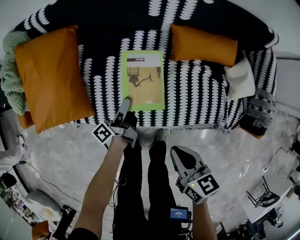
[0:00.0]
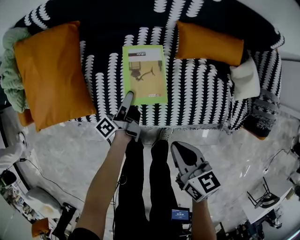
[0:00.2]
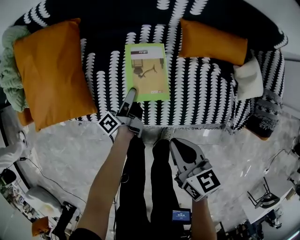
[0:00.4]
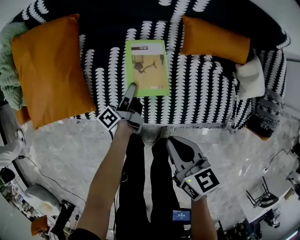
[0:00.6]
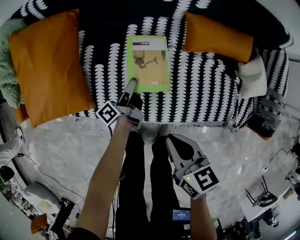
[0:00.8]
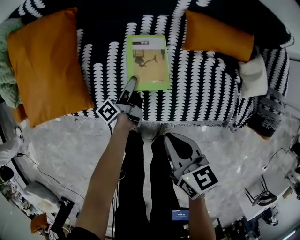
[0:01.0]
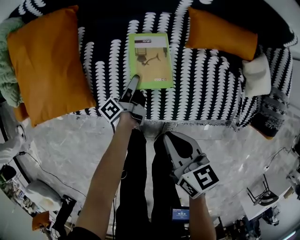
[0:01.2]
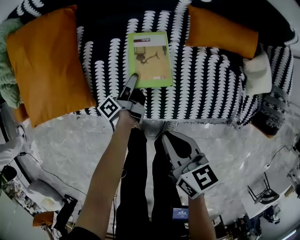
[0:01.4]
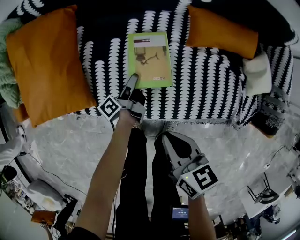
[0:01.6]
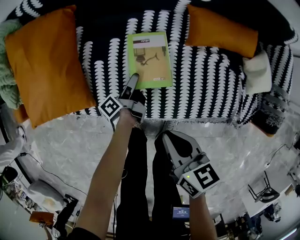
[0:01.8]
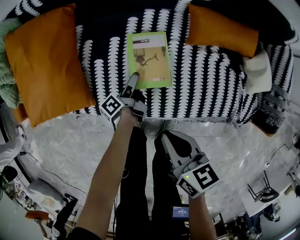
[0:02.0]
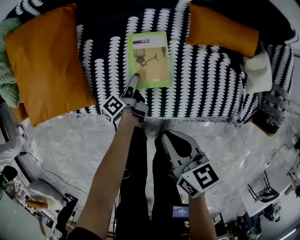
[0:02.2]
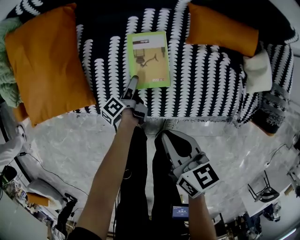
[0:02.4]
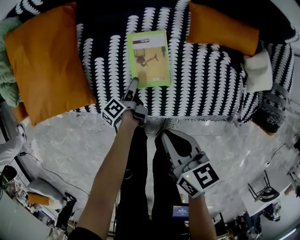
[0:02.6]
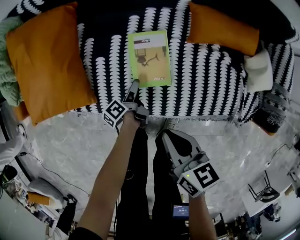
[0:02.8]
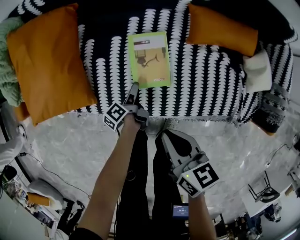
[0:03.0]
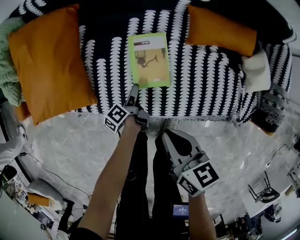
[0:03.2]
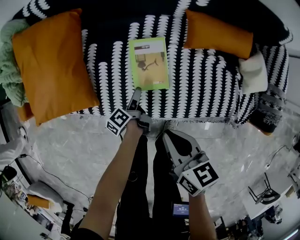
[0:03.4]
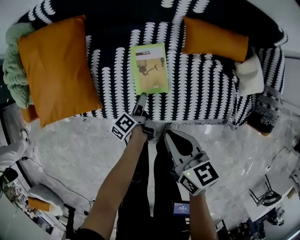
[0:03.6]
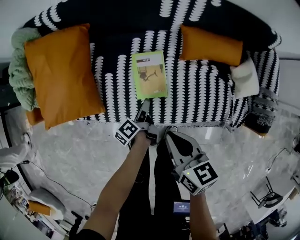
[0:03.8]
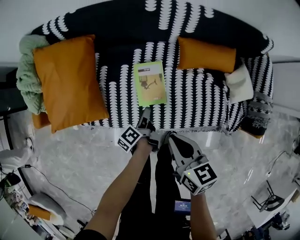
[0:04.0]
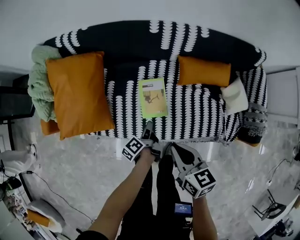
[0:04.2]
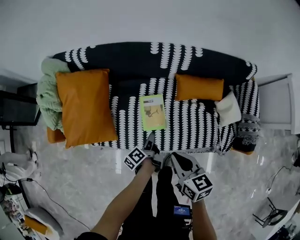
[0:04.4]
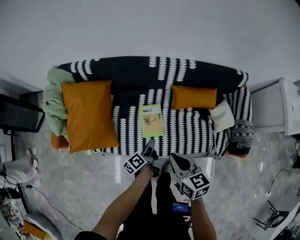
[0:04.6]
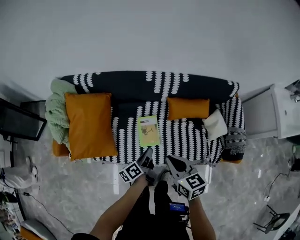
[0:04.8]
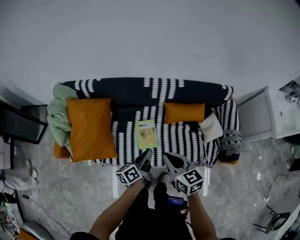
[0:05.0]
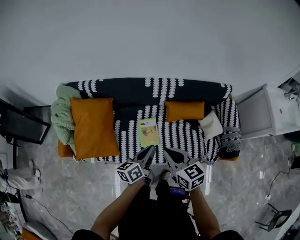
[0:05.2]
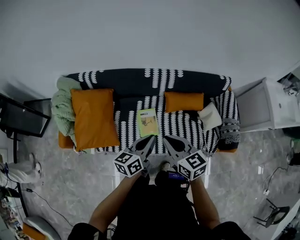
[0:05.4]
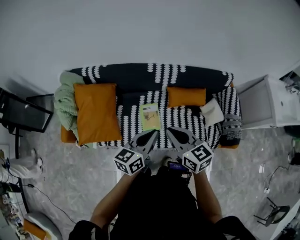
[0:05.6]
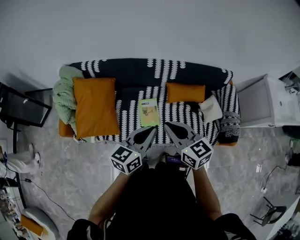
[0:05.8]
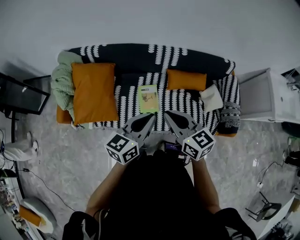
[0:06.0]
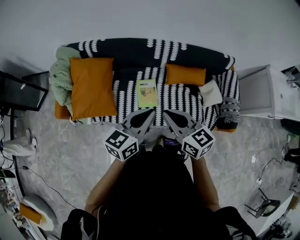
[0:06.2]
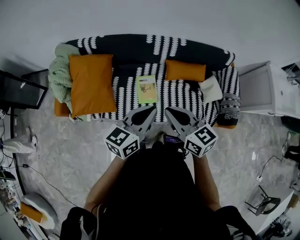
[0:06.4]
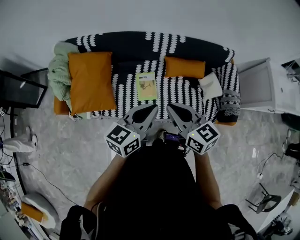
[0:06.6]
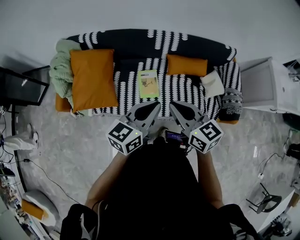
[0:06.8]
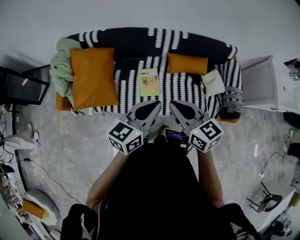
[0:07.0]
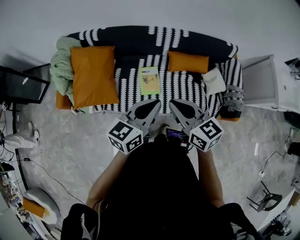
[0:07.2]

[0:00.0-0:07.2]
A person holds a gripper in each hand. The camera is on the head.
0.0 to 1.4 s: The right gripper shifts by about 10 cm.
2.8 to 4.4 s: The right gripper shifts about 15 cm upward.
4.4 to 5.8 s: The right gripper is displaced upward by about 20 cm, and changes its angle by some 20 degrees.
5.8 to 7.2 s: The right gripper ends up about 5 cm from where it was.

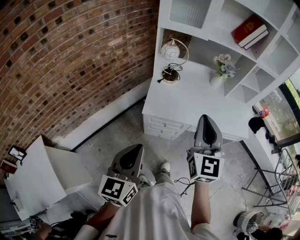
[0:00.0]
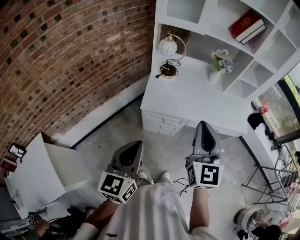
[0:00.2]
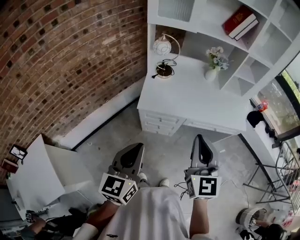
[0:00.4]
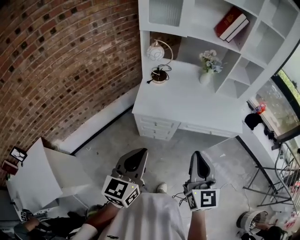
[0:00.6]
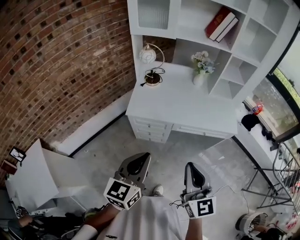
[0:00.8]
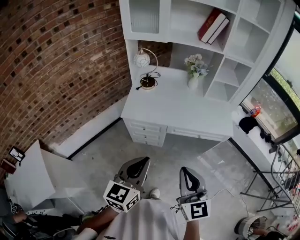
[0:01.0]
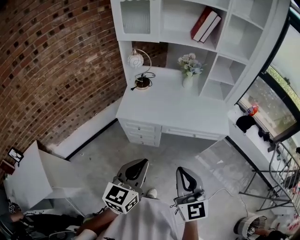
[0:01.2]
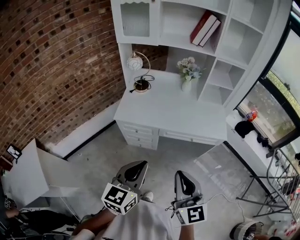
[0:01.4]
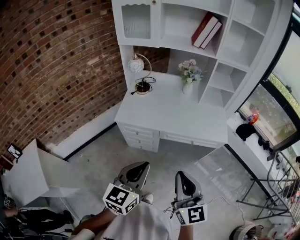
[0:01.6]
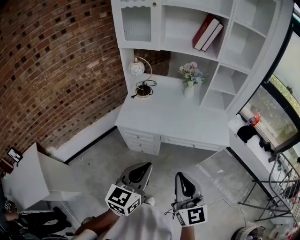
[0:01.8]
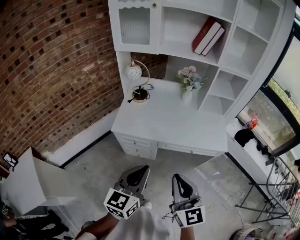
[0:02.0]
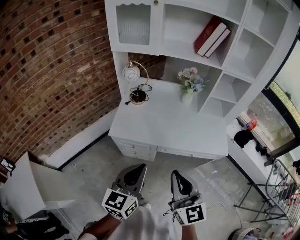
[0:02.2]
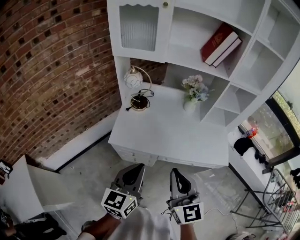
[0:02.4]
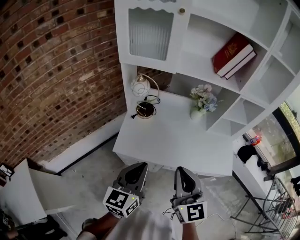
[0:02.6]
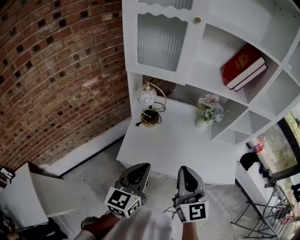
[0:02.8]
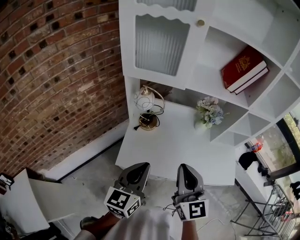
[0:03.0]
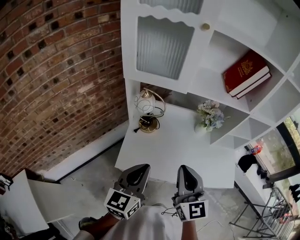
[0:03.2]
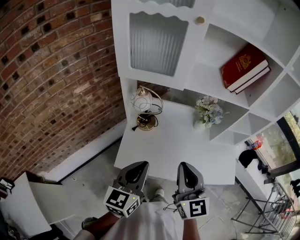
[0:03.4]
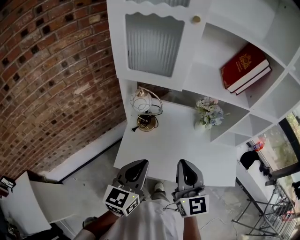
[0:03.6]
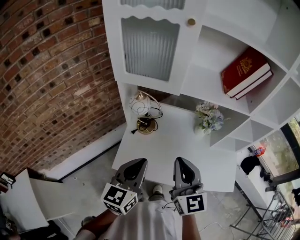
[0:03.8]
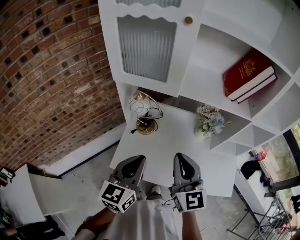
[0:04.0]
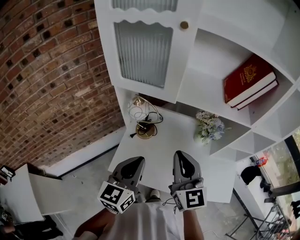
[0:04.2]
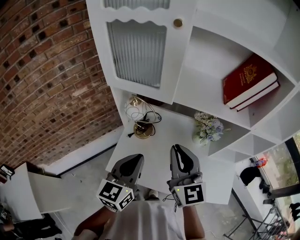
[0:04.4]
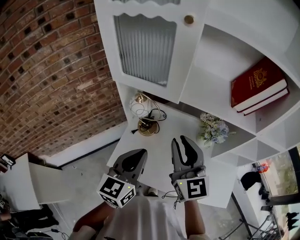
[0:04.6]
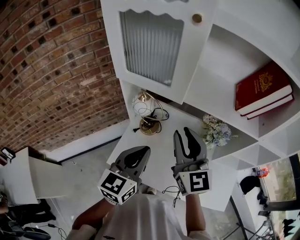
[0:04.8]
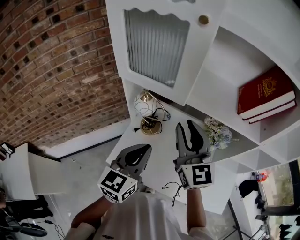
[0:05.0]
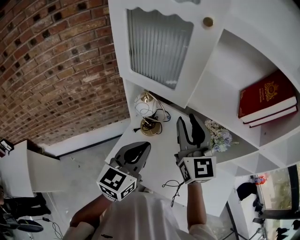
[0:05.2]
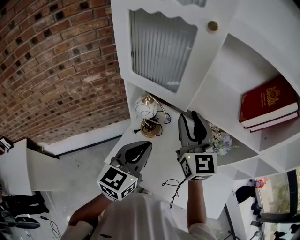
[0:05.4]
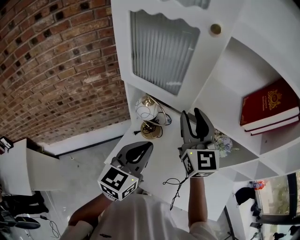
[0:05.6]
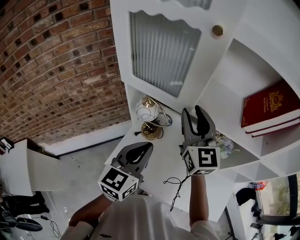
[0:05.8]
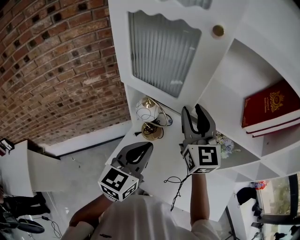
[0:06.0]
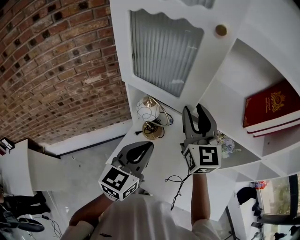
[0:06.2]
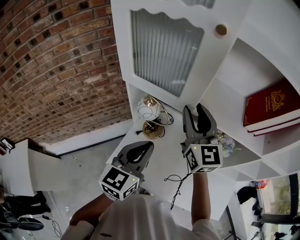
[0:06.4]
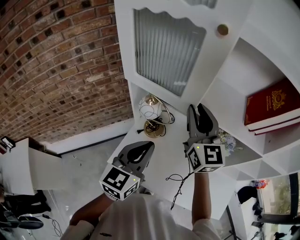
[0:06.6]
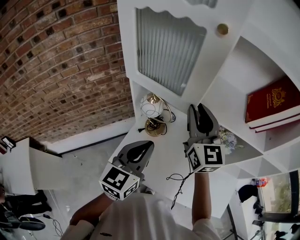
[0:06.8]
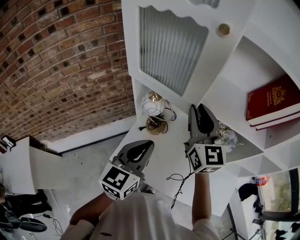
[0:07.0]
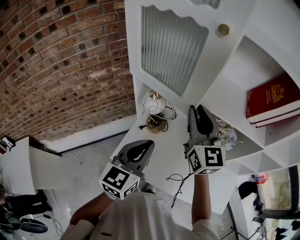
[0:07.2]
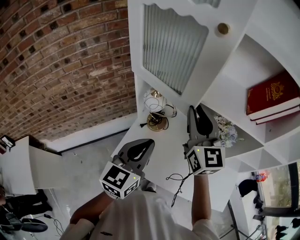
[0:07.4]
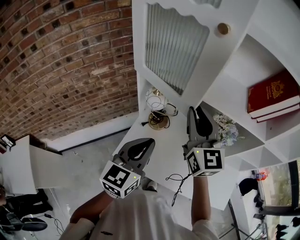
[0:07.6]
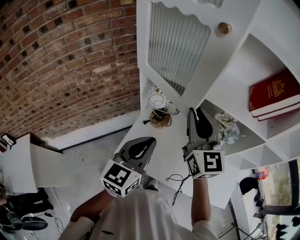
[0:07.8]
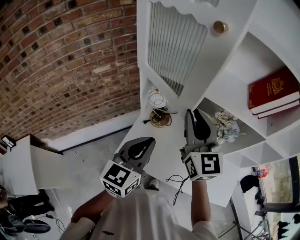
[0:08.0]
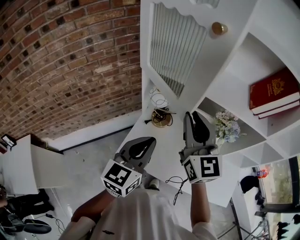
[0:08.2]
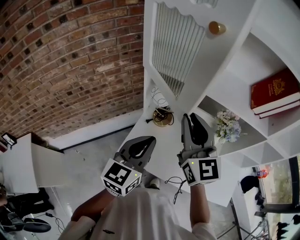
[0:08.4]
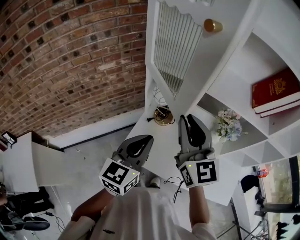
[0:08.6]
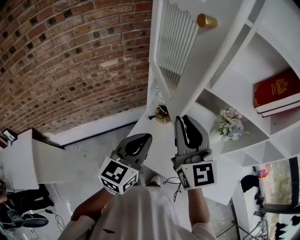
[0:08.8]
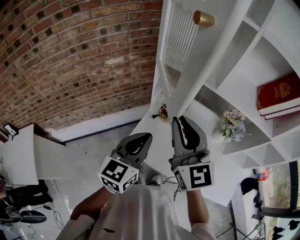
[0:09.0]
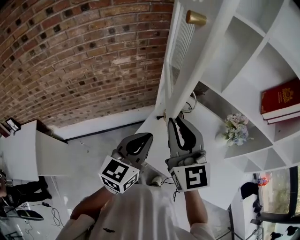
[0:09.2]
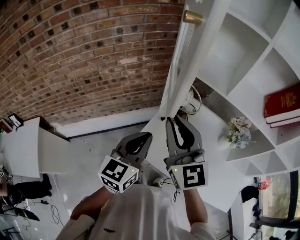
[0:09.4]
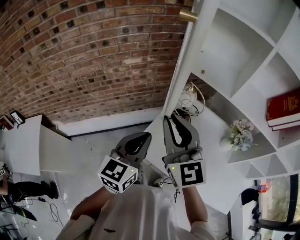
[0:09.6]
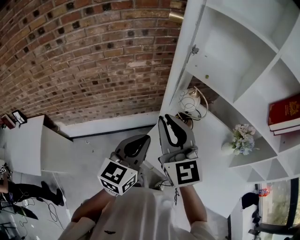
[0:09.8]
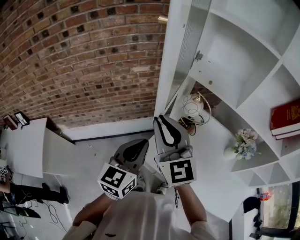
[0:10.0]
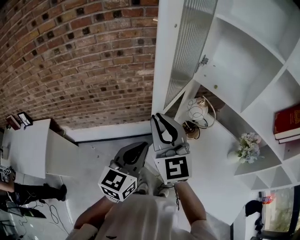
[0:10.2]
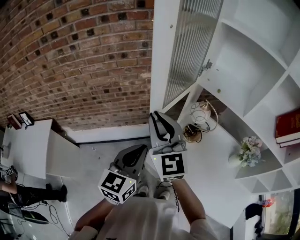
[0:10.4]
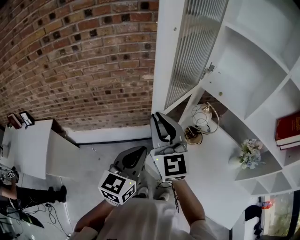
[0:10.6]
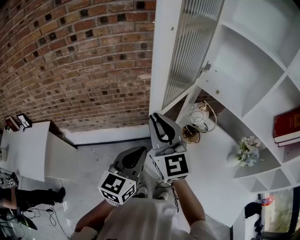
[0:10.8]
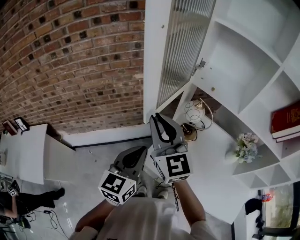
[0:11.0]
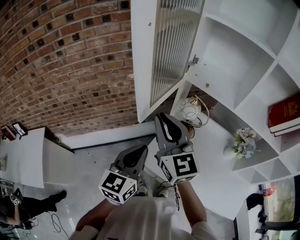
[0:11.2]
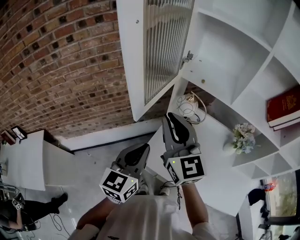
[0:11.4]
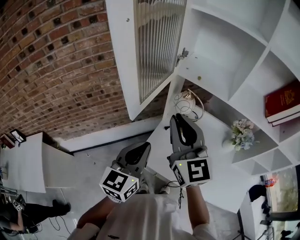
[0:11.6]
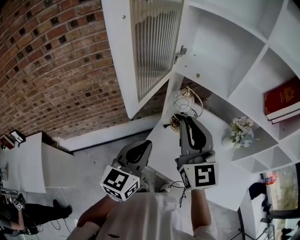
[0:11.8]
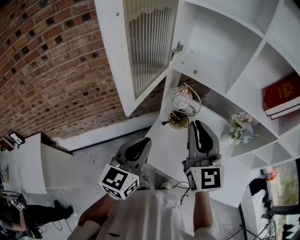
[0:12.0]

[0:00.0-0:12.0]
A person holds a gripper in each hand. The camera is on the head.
0.0 to 1.6 s: The right gripper is displaced to the right and backward by some 30 cm. Meanwhile the left gripper heads to the right, covering about 30 cm.
1.6 to 3.0 s: The left gripper goes some 40 cm forward and to the left; the right gripper is displaced forward by about 40 cm.
3.0 to 4.4 s: The right gripper heads forward, covering roughly 15 cm, while the left gripper goes about 15 cm forward and to the right.
4.4 to 6.0 s: The left gripper shifts approximately 10 cm forward. The right gripper goes some 20 cm forward, and opens its fingers.
6.0 to 7.6 s: The two grippers go some 5 cm backward.
7.6 to 9.0 s: The left gripper heads to the left, covering some 5 cm. The right gripper goes some 15 cm to the left and backward.
9.0 to 10.4 s: The grippers both shift to the left by roughly 15 cm.
10.4 to 12.0 s: The right gripper travels to the right by some 20 cm, and rotates roughly 20 degrees. The left gripper goes some 5 cm to the right.

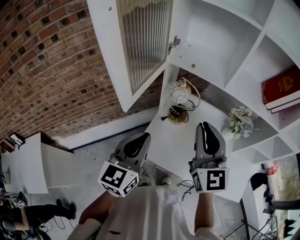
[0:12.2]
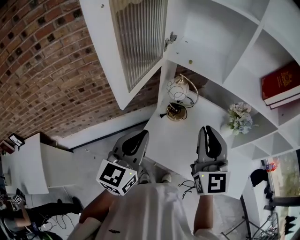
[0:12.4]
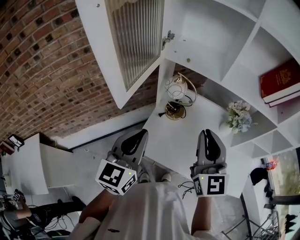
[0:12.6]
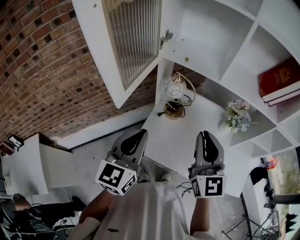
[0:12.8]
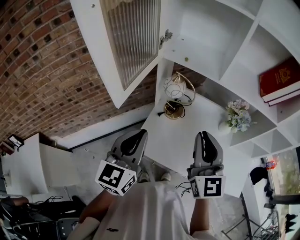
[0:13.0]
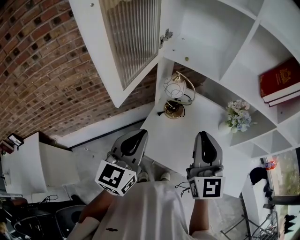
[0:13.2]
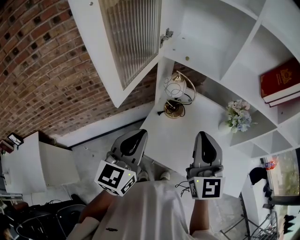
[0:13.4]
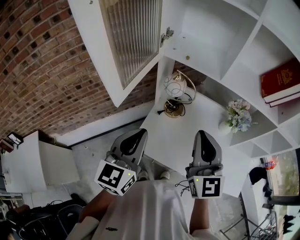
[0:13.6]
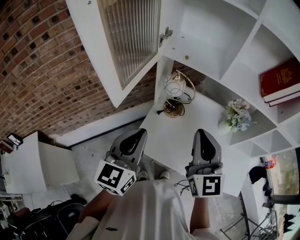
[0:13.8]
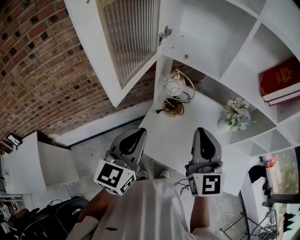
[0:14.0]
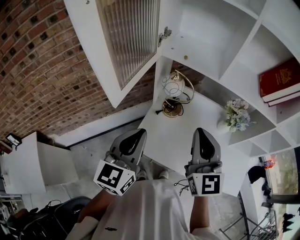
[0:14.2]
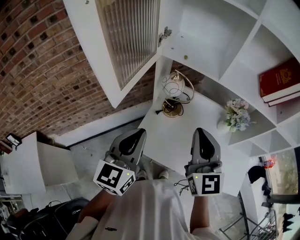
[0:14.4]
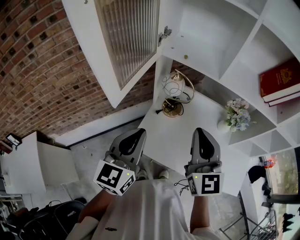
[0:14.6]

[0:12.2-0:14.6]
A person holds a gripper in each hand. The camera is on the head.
12.2 to 13.4 s: The right gripper changes place by approximately 5 cm.
13.4 to 14.6 s: There are only small adjustments of the grippers.

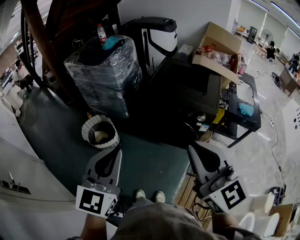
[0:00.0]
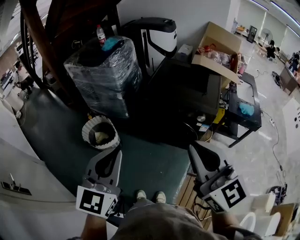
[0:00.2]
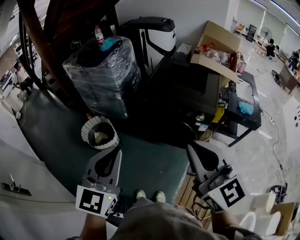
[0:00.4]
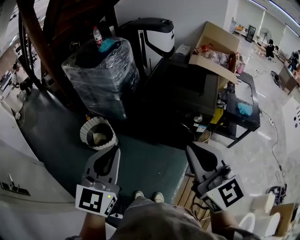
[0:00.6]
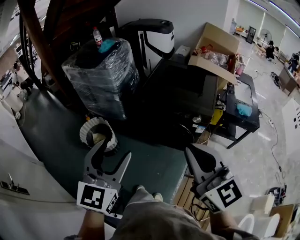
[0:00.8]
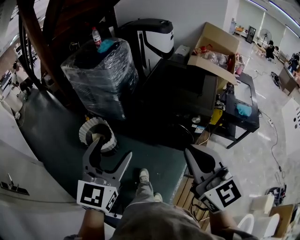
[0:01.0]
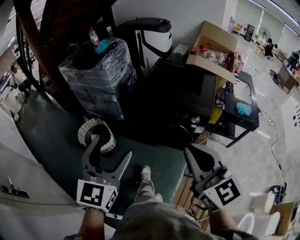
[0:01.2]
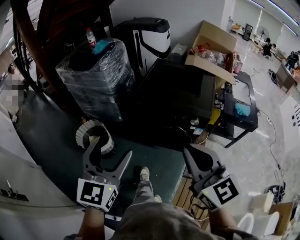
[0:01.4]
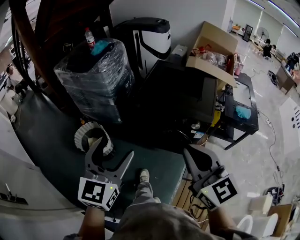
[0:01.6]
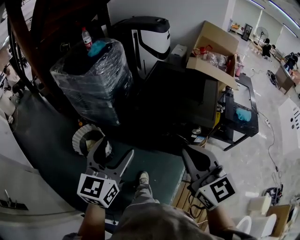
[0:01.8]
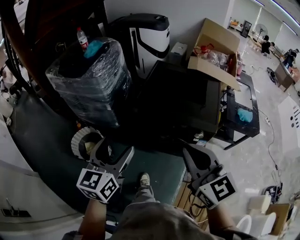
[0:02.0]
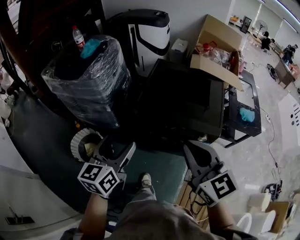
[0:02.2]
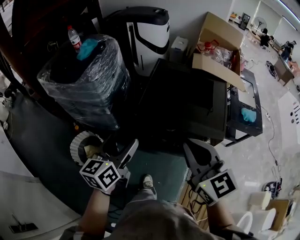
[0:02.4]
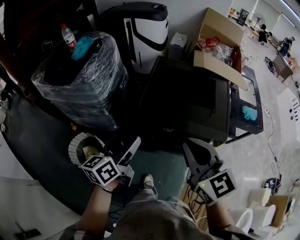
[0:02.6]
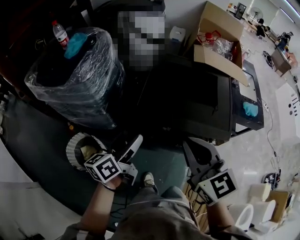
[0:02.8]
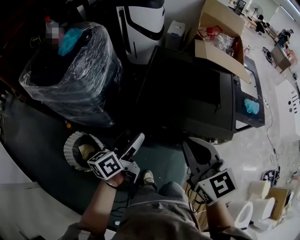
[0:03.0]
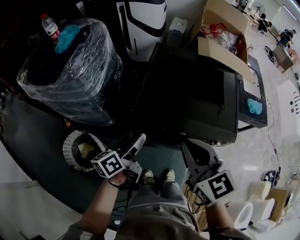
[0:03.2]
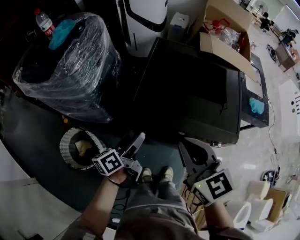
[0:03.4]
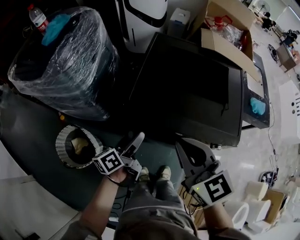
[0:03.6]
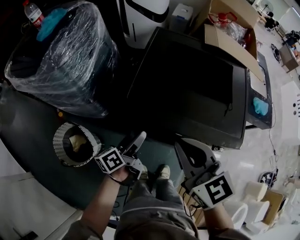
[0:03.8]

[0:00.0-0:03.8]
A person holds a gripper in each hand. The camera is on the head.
0.0 to 1.2 s: The right gripper changes place by roughly 5 cm, while the left gripper moves some 5 cm, and opens.
1.2 to 2.6 s: The left gripper moves forward and downward, roughly 35 cm, and rolls counterclockwise, seen from behind, by about 50 degrees. The right gripper travels forward by approximately 30 cm.
2.6 to 3.8 s: The left gripper travels downward by roughly 25 cm, and changes its angle by about 30 degrees; the right gripper goes about 15 cm downward and forward.
